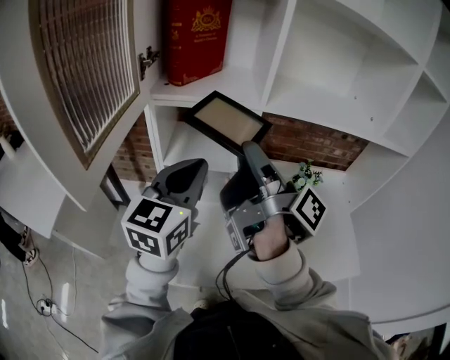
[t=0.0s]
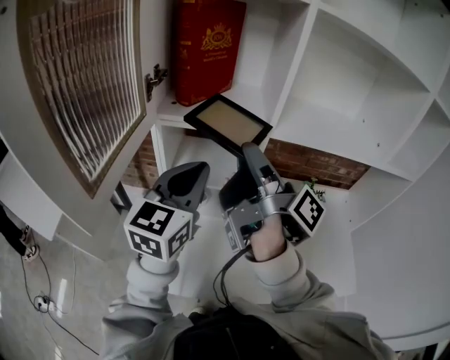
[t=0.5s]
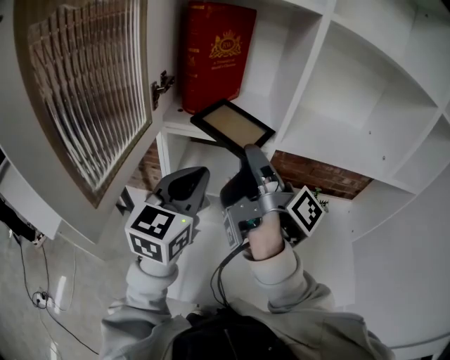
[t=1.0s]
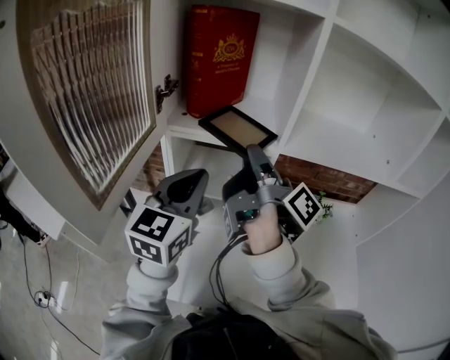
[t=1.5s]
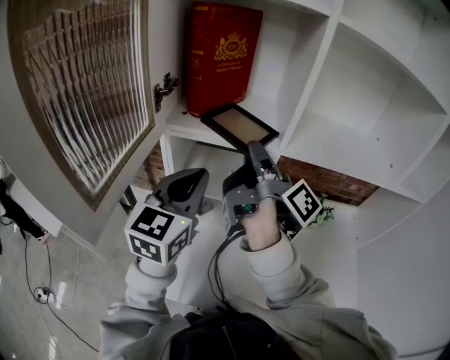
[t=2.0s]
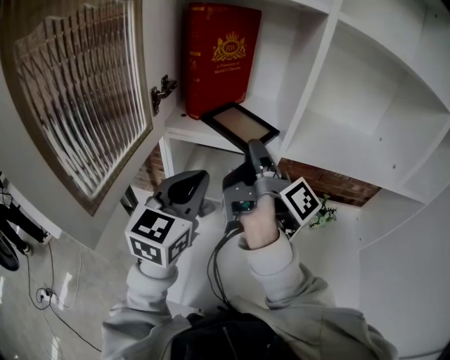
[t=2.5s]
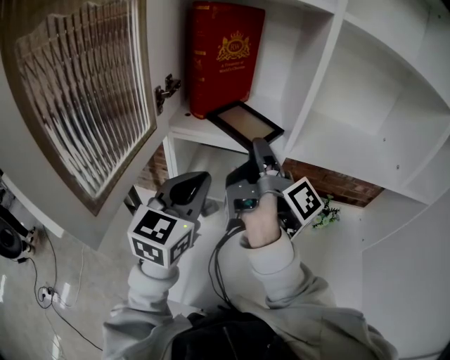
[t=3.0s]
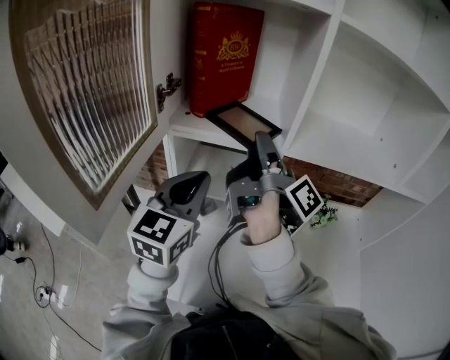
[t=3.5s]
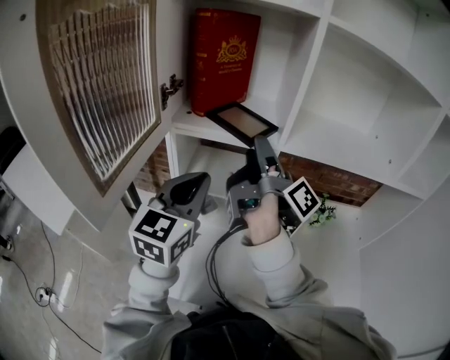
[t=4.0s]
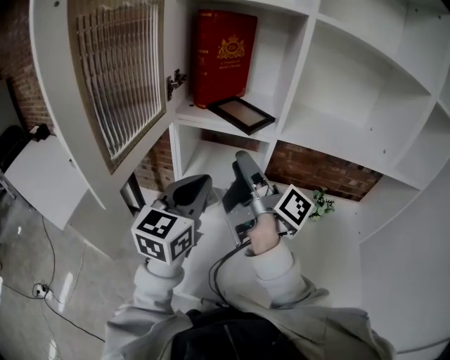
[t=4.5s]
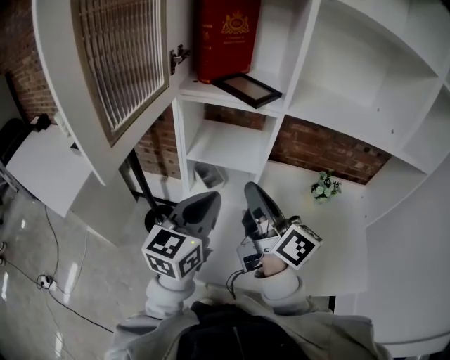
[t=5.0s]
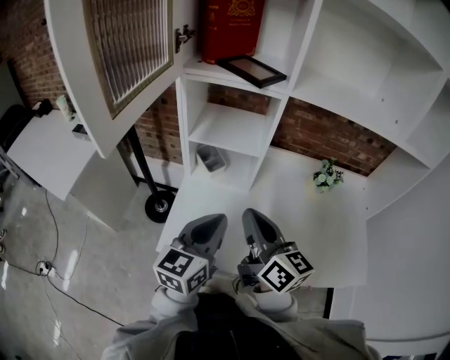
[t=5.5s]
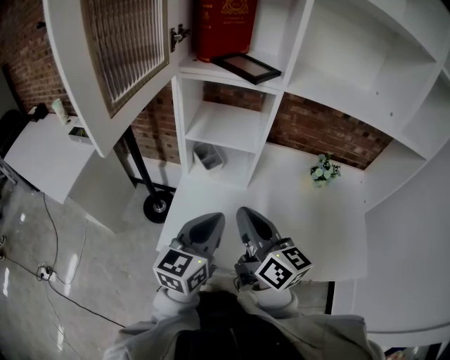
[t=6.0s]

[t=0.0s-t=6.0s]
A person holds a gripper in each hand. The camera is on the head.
t=0.0s to t=2.0s: The left gripper changes place by about 5 cm.
t=4.0s to t=6.0s: The left gripper ends up roughly 25 cm from where it was.

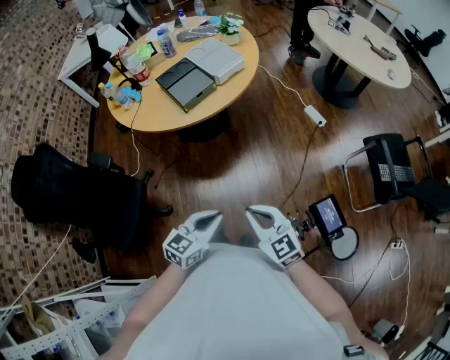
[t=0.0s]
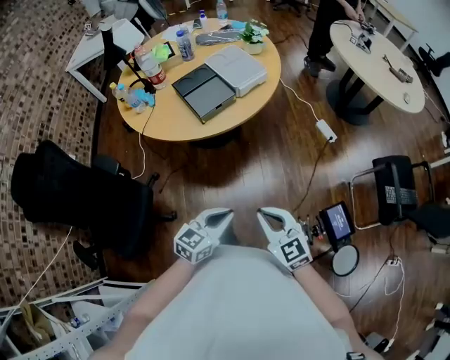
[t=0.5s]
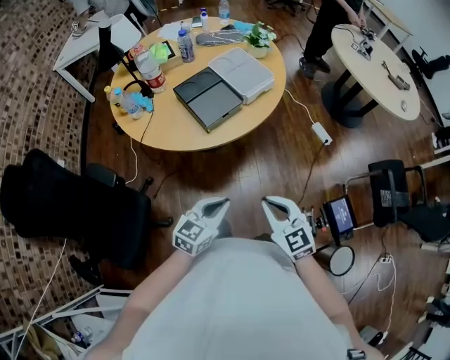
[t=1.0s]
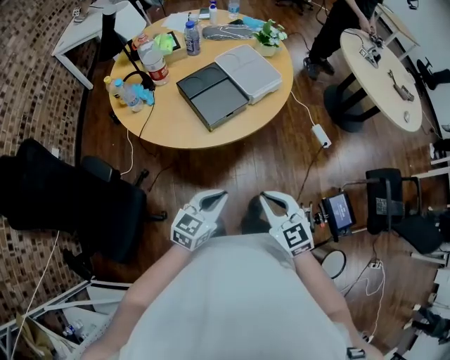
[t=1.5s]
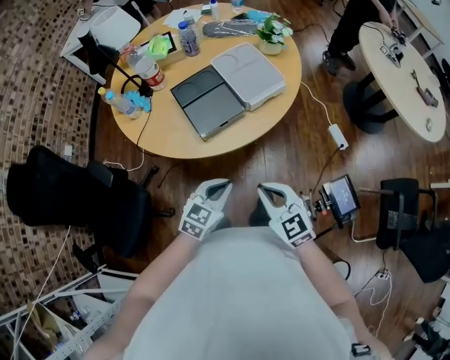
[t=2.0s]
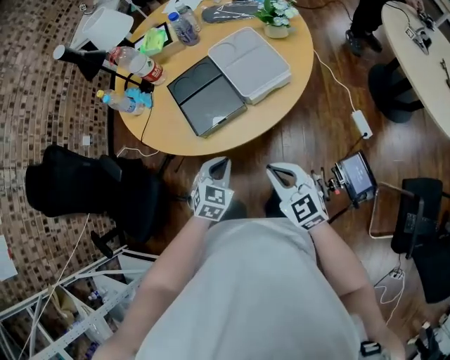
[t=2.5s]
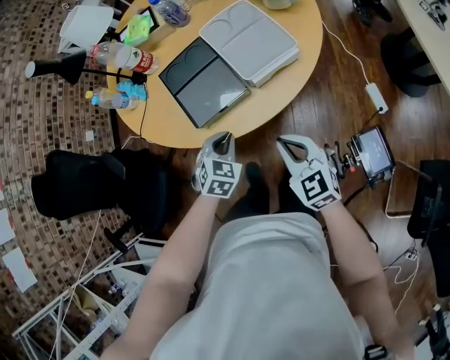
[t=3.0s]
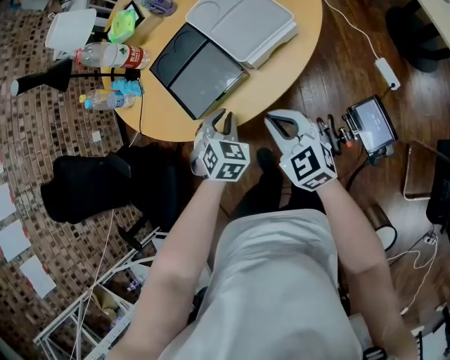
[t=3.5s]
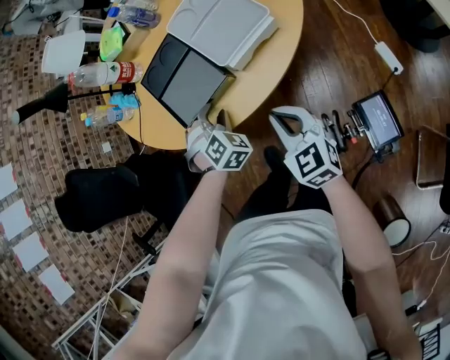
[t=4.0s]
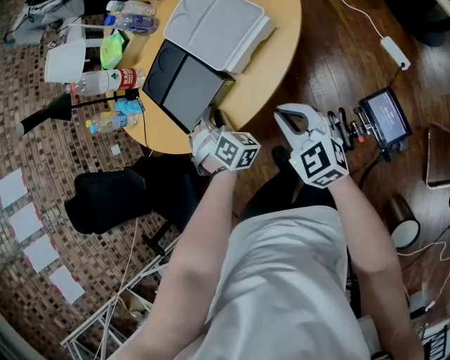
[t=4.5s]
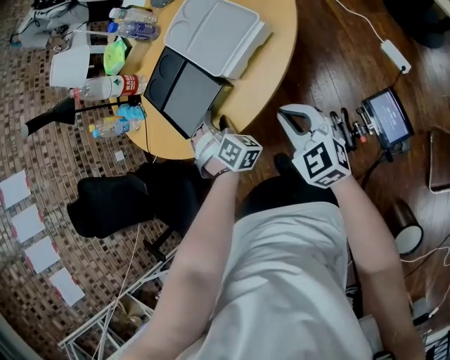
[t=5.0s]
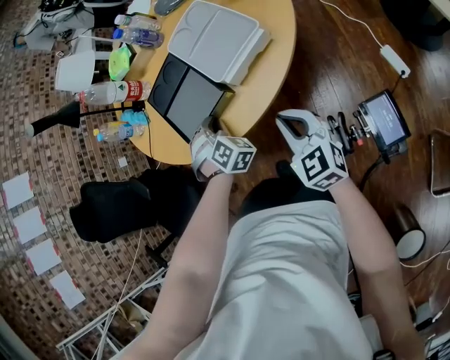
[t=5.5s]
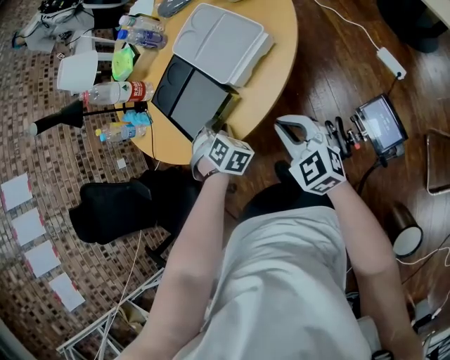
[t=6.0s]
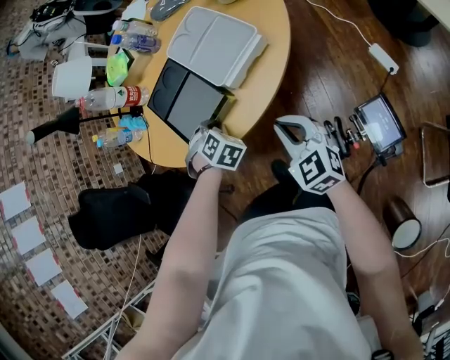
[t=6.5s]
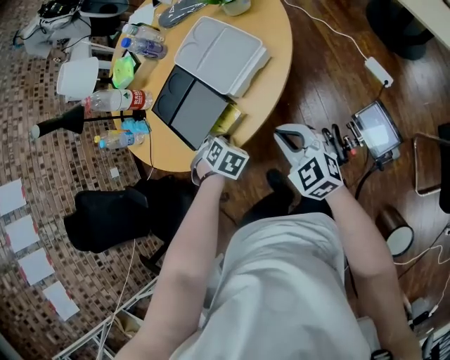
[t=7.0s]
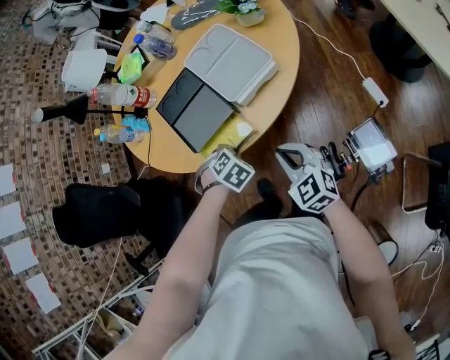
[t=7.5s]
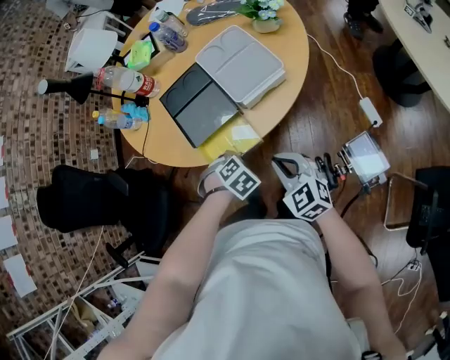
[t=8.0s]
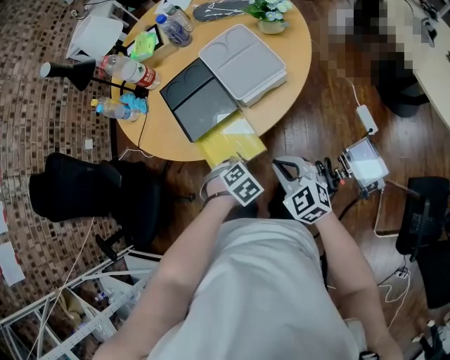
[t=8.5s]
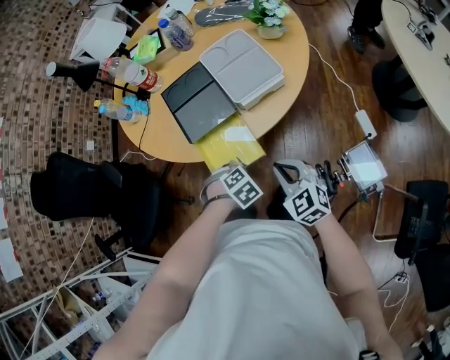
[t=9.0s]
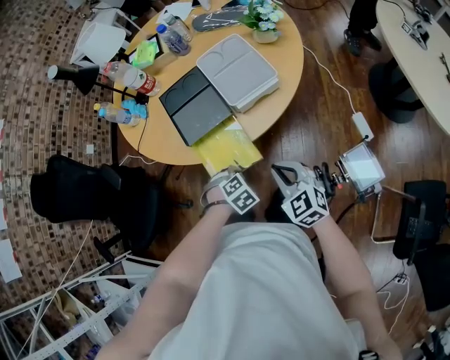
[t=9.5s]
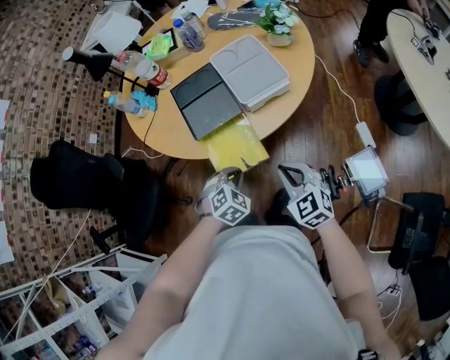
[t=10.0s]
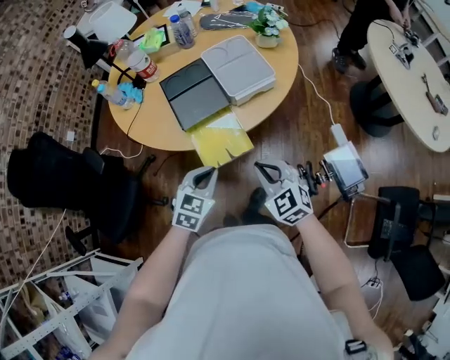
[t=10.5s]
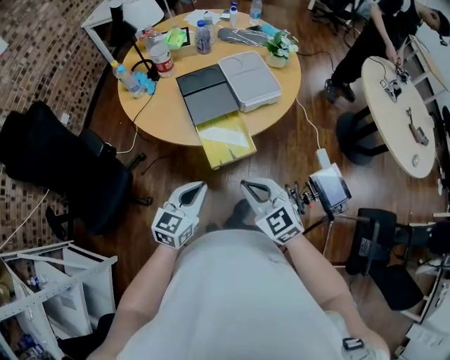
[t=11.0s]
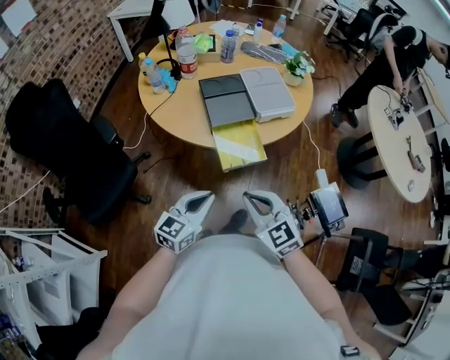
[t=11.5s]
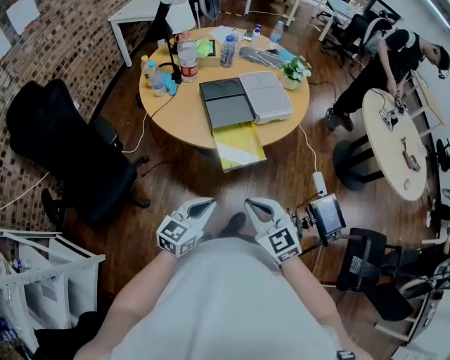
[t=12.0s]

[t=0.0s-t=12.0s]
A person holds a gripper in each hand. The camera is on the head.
t=0.0s to t=2.0s: The grippers both shift forward by about 30 cm.
t=2.0s to t=4.0s: The right gripper shifts by some 20 cm; the left gripper shifts by about 25 cm, rotates some 60 degrees, and opens its fingers.
t=4.0s to t=6.0s: The grippers move only a little.
t=6.0s to t=8.0s: The left gripper changes place by some 10 cm, and changes its angle by about 30 degrees. Meanwhile the right gripper moves roughly 5 cm.
t=8.0s to t=10.0s: The left gripper ends up some 5 cm from where it was, and rotates approximately 20 degrees.
t=10.0s to t=12.0s: The right gripper goes some 25 cm backward, to the left and upward; the left gripper moves backward, upward and to the left, some 25 cm, and angles its fingers upward, by some 50 degrees.

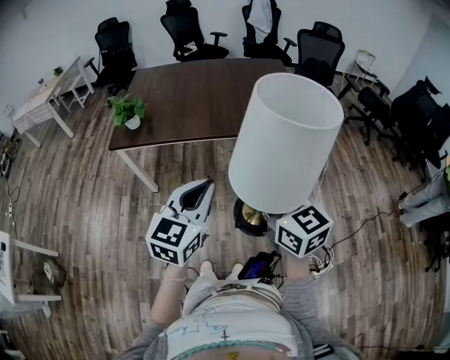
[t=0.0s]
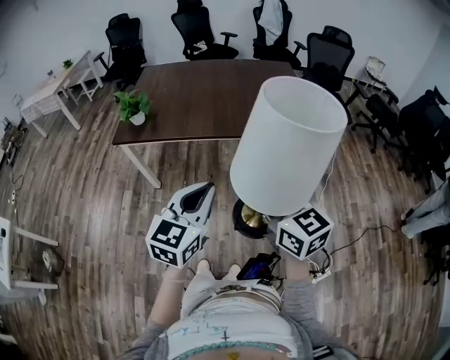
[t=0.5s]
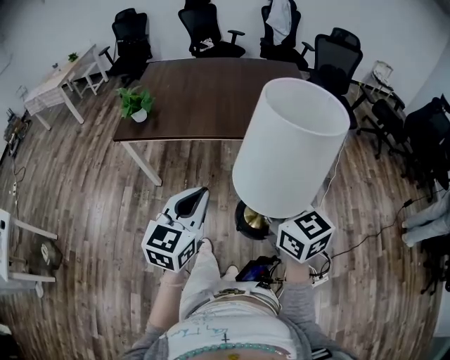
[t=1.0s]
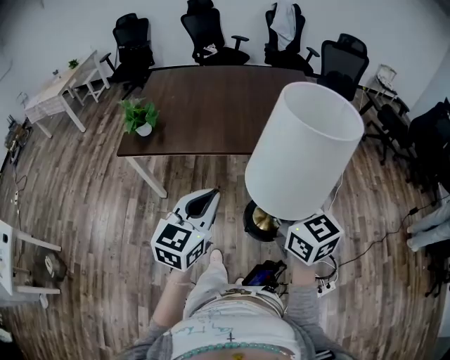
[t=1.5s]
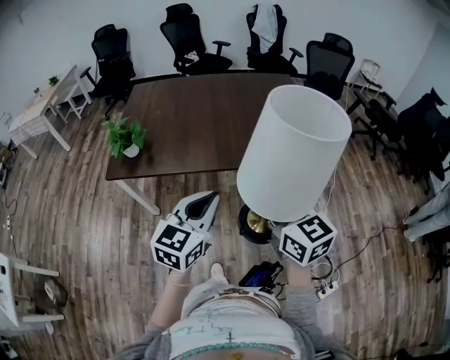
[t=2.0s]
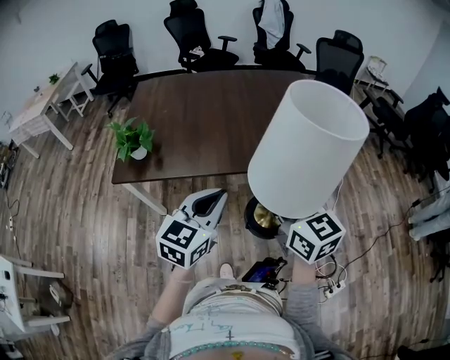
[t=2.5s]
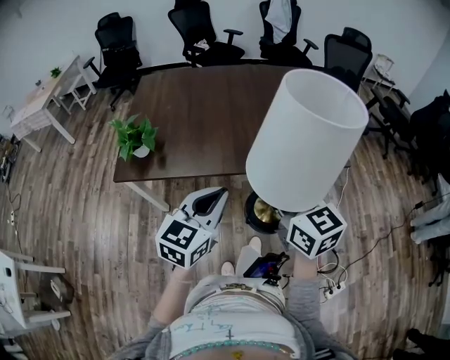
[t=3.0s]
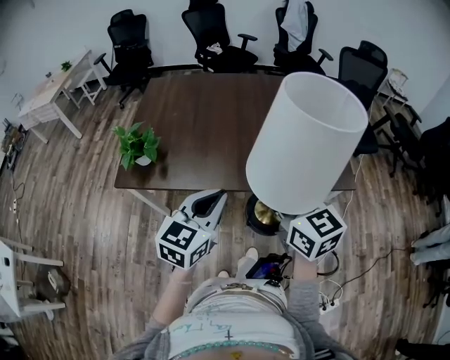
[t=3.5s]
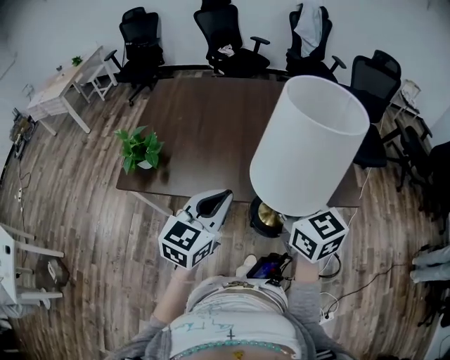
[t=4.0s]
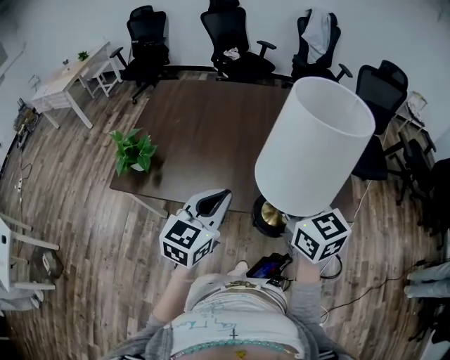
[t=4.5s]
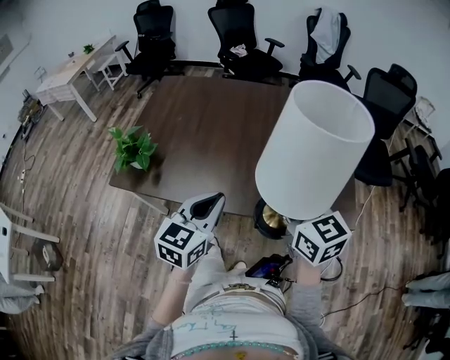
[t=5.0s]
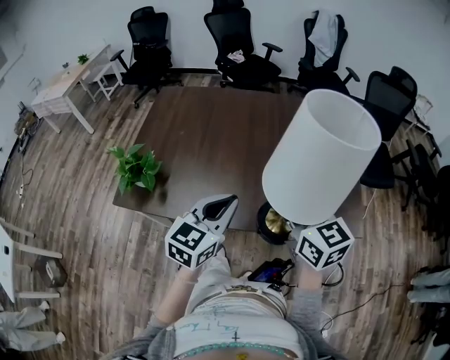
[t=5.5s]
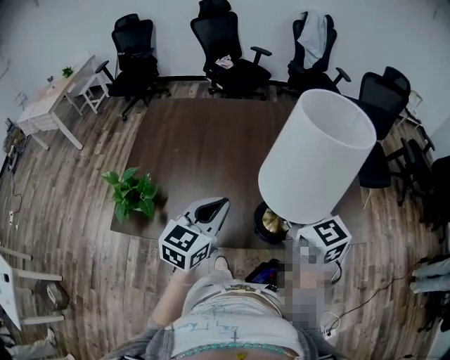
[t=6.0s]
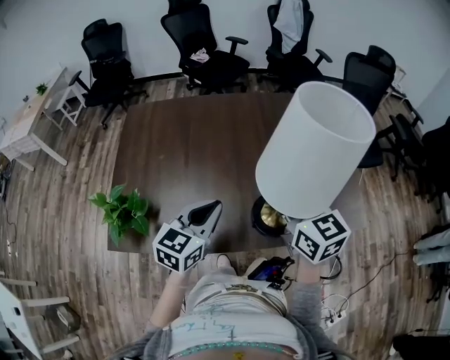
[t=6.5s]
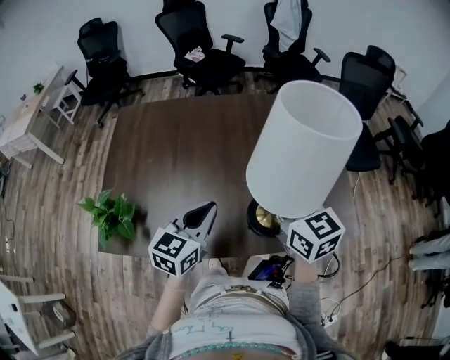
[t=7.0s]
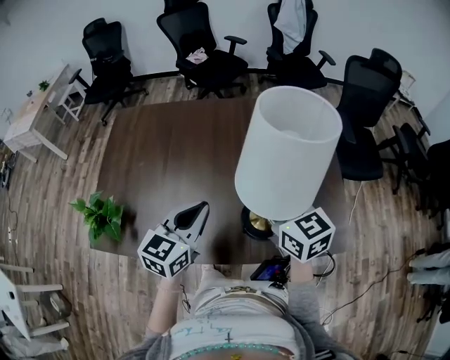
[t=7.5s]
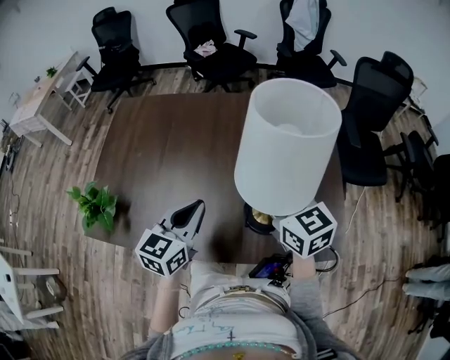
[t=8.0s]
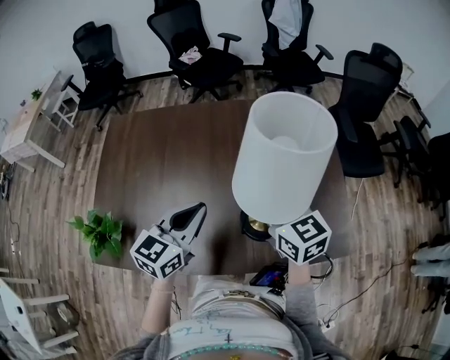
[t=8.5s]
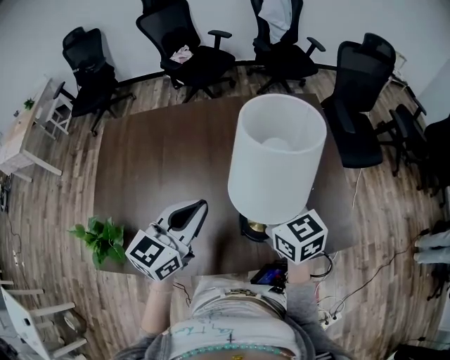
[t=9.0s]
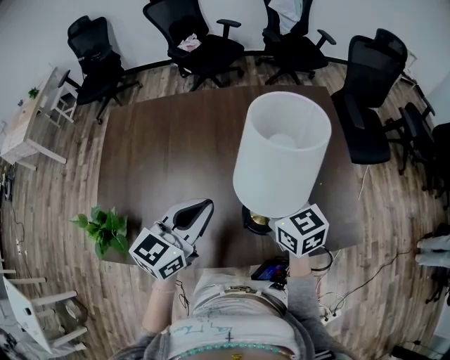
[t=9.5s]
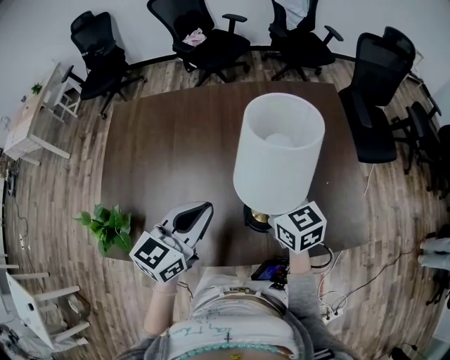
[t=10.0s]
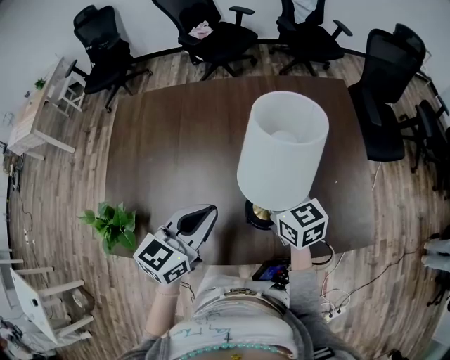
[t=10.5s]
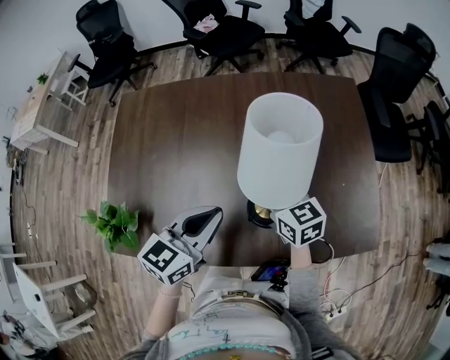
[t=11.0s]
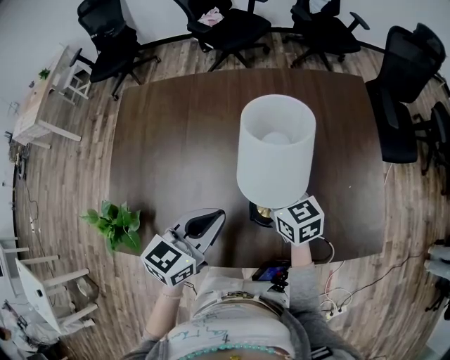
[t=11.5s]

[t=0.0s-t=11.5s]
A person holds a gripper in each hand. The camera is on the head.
t=0.0s to t=2.0s: The two grippers go approximately 15 cm forward.
t=2.0s to t=4.0s: The grippers both shift forward by roughly 20 cm.
t=4.0s to t=6.0s: Both grippers travel together forward, roughly 20 cm.
t=6.0s to t=7.5s: The two grippers go roughly 15 cm forward and to the right.
t=7.5s to t=9.5s: The right gripper travels downward by roughly 5 cm.
t=9.5s to t=11.5s: The right gripper goes roughly 15 cm downward, to the left and forward. The left gripper heads downward, covering roughly 5 cm.
